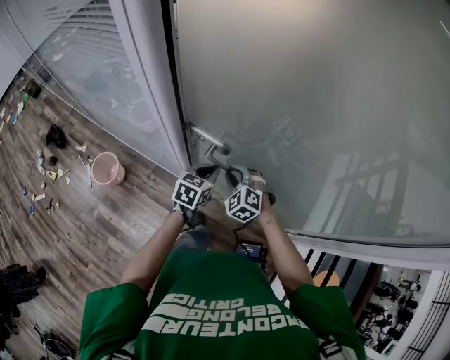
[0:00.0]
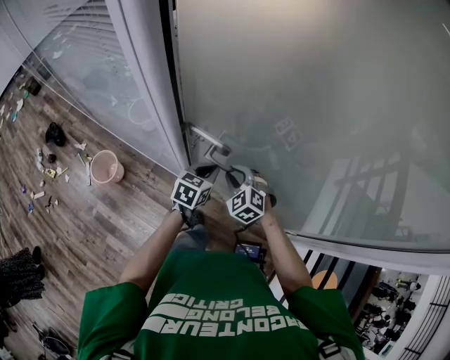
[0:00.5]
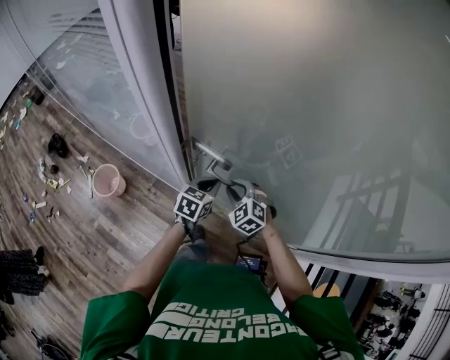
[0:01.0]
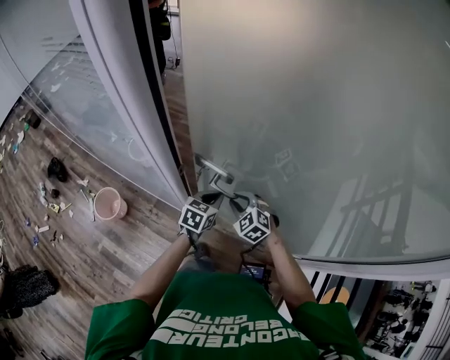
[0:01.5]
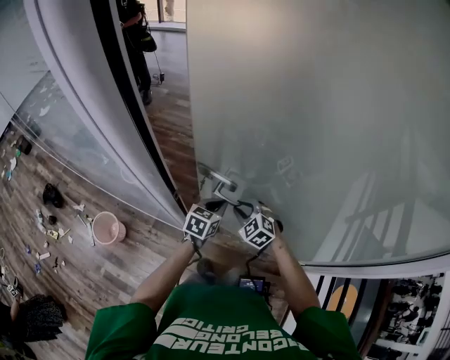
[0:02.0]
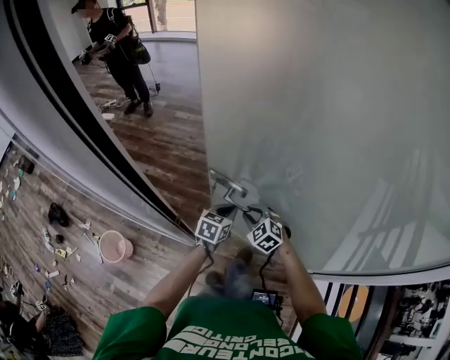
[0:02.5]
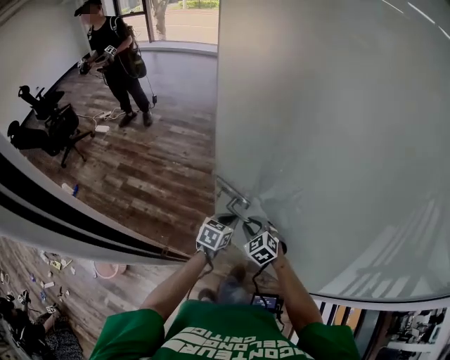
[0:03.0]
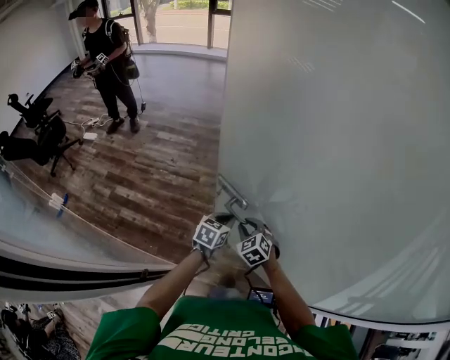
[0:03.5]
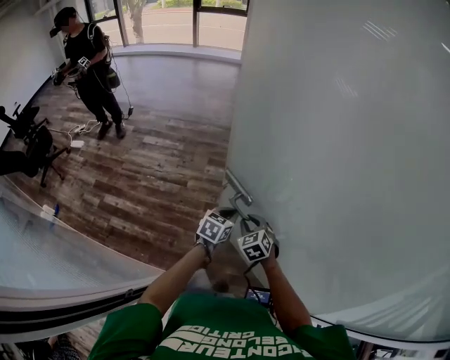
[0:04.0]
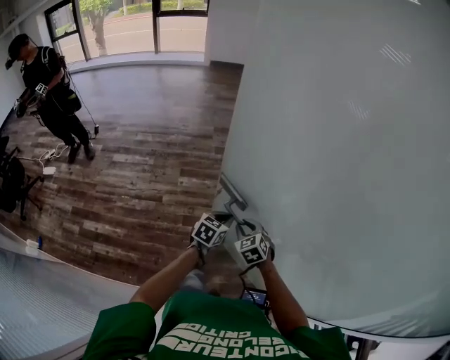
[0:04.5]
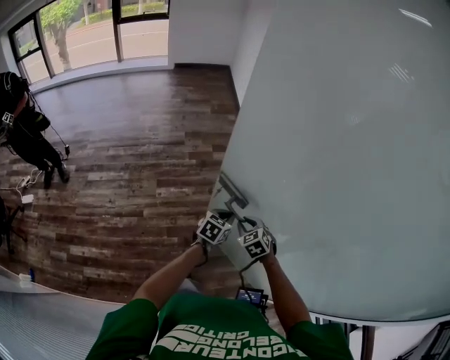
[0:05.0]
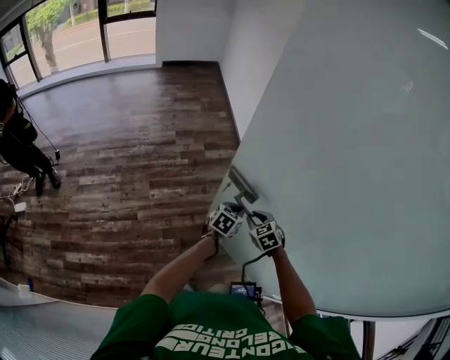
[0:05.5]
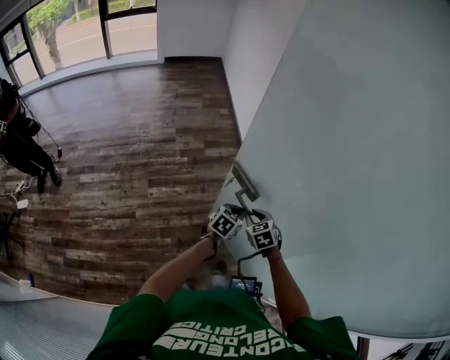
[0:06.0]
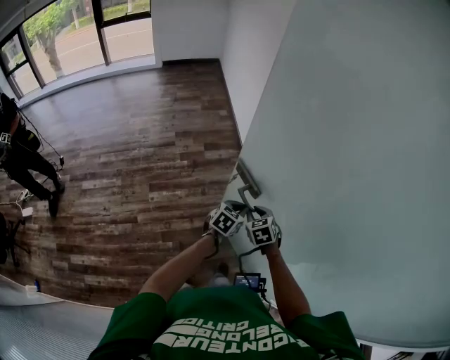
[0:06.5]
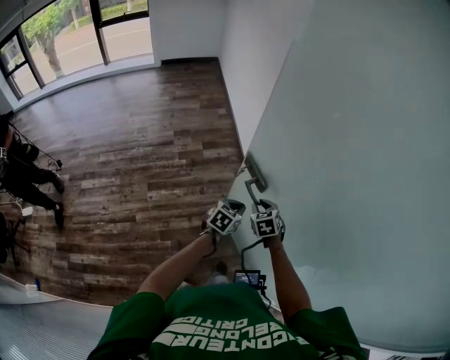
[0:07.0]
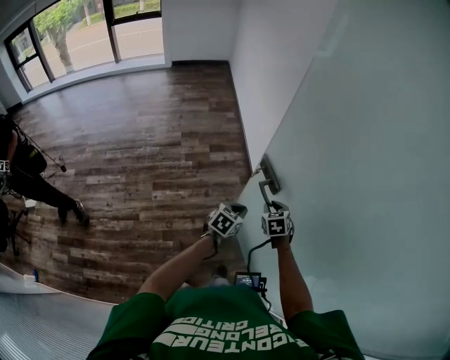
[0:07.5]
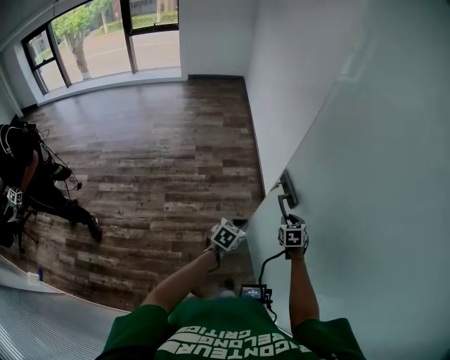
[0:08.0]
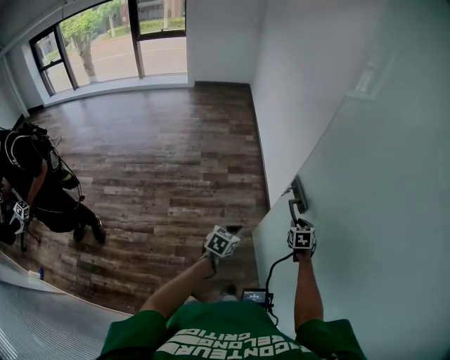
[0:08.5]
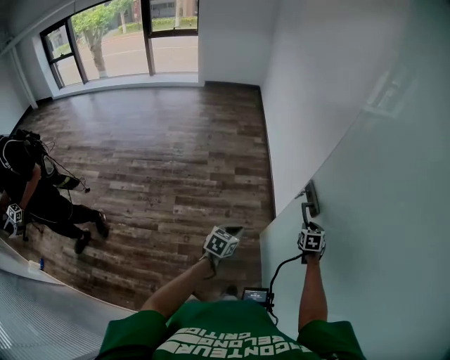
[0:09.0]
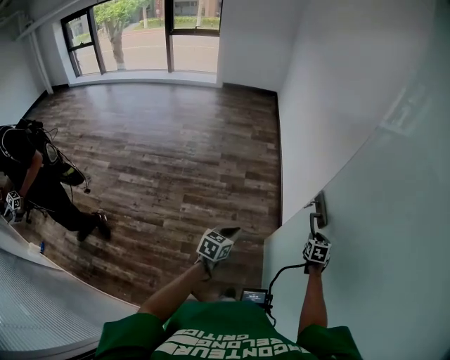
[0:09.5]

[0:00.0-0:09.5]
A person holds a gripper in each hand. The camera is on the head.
0:00.0 to 0:02.0: The grippers both shift forward by roughly 10 cm.
0:02.0 to 0:04.0: The grippers both shift forward by about 35 cm. The right gripper rotates roughly 30 degrees.
0:04.0 to 0:05.5: Both grippers move forward and to the right, some 25 cm. The right gripper changes its angle by approximately 20 degrees; the left gripper swivels roughly 30 degrees.
0:05.5 to 0:07.5: The left gripper travels forward by approximately 10 cm. Meanwhile the right gripper travels forward and to the right by approximately 20 cm.
0:07.5 to 0:09.5: The left gripper is displaced to the left and backward by approximately 15 cm, and turns by some 20 degrees; the right gripper moves to the right and forward, some 10 cm.

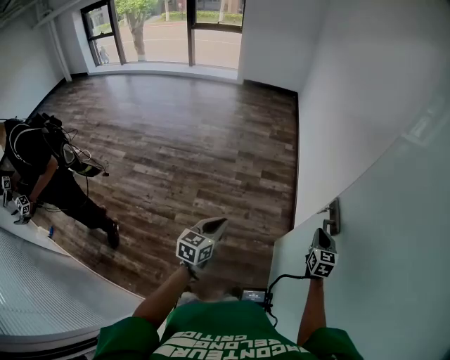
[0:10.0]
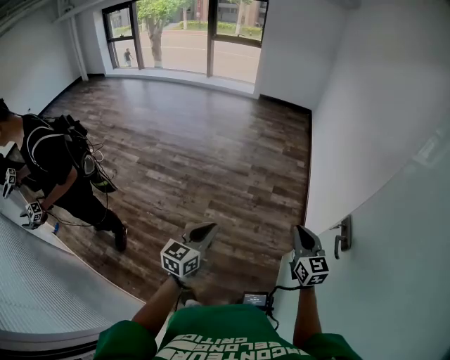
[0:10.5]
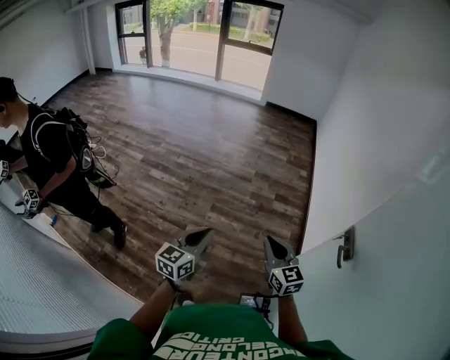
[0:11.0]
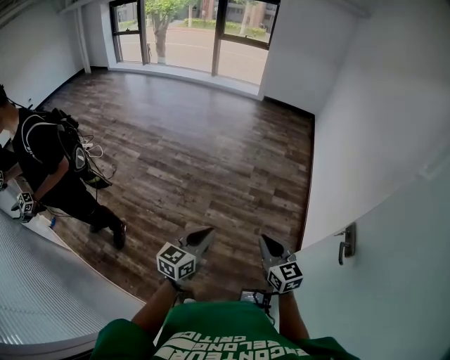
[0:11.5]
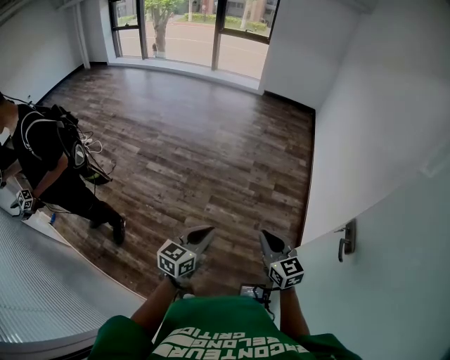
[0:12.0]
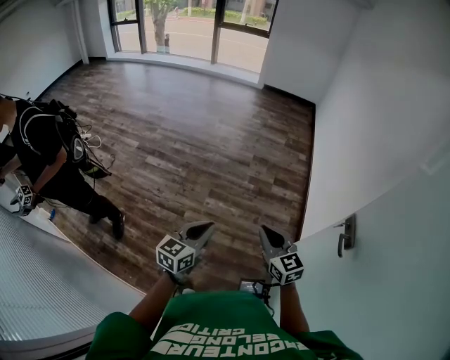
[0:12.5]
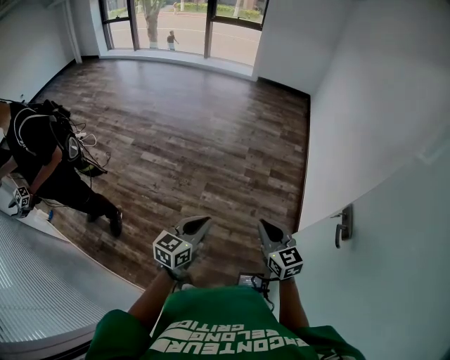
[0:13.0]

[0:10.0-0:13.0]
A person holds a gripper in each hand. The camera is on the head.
0:10.0 to 0:11.5: The left gripper is displaced to the left by approximately 15 cm. Meanwhile the right gripper moves to the left, some 35 cm, and turns by approximately 40 degrees.
0:11.5 to 0:13.0: The grippers make only small movements.

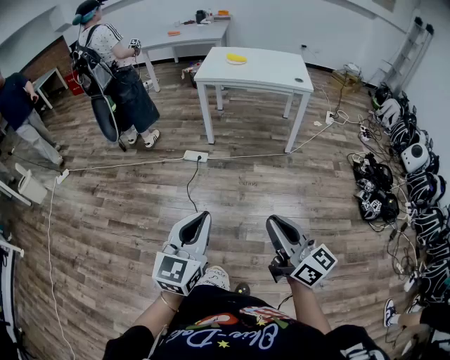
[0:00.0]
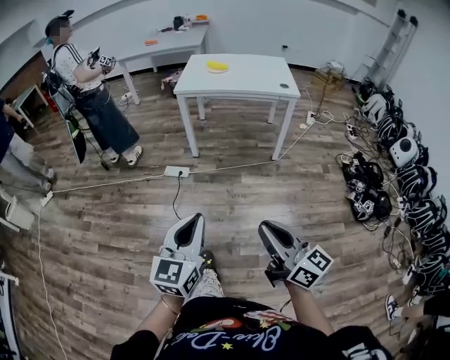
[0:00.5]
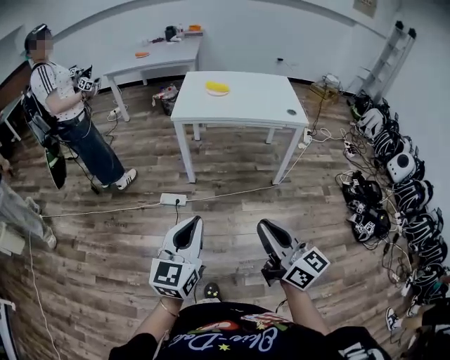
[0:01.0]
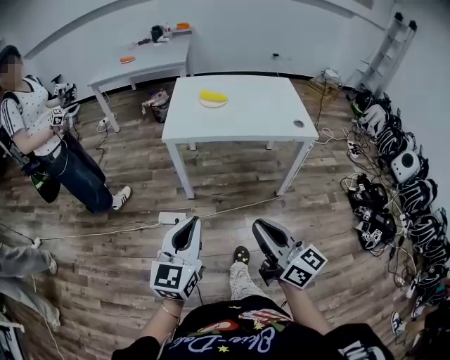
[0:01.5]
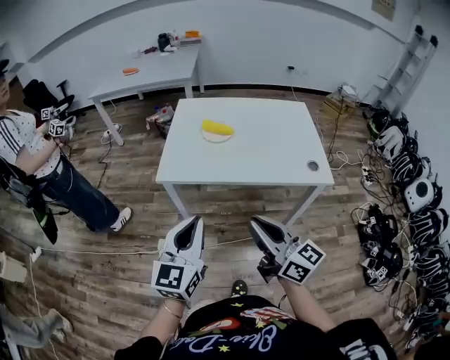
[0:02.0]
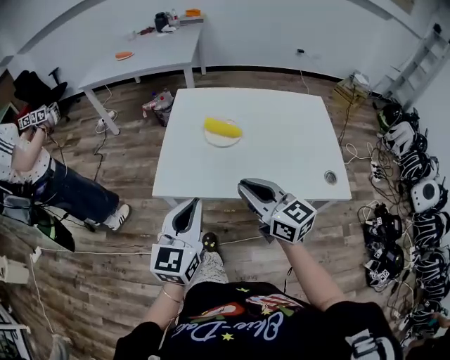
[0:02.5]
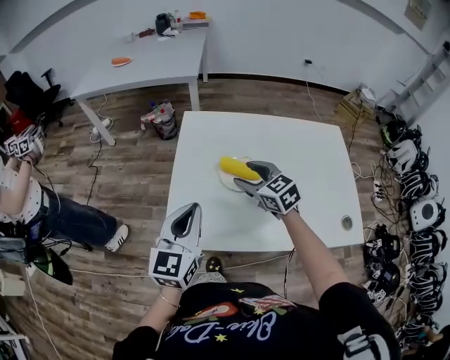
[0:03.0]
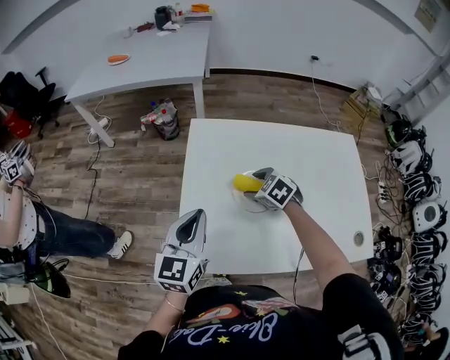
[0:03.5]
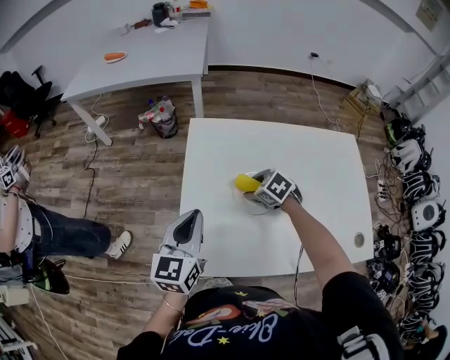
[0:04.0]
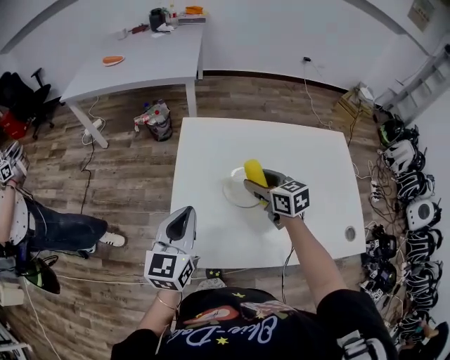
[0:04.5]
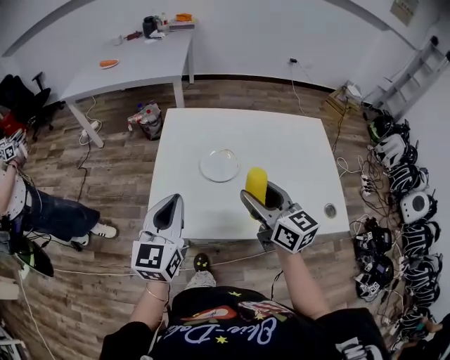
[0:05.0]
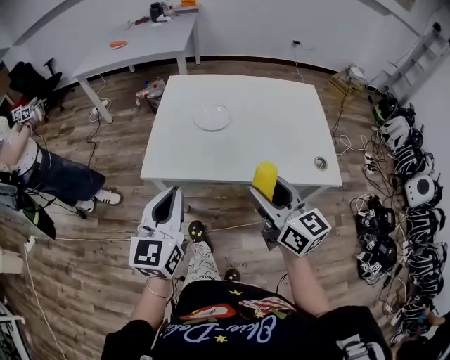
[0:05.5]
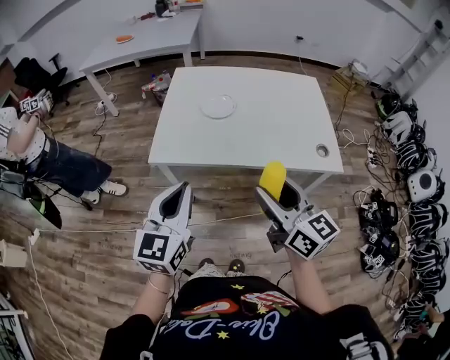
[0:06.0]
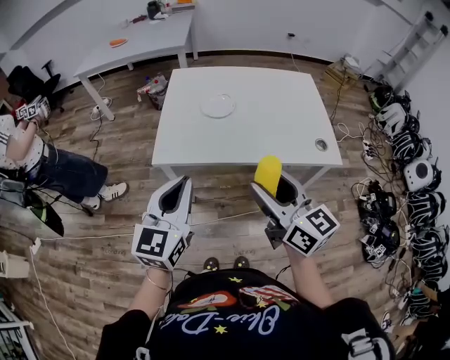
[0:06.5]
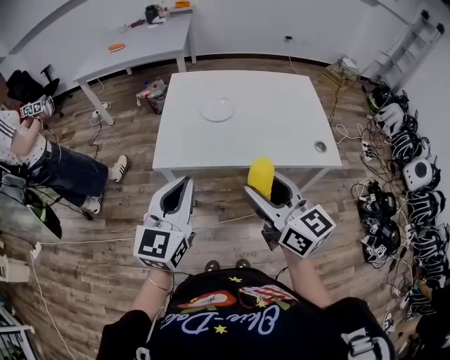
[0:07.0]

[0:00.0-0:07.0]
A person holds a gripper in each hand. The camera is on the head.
0:00.0 to 0:02.0: The pair of grippers is taken forward, approximately 70 cm.
0:02.0 to 0:03.5: The pair of grippers is taken forward, about 50 cm. The right gripper tilts its fingers about 70 degrees downward, and opens up.
0:03.5 to 0:05.0: The left gripper shifts approximately 10 cm backward; the right gripper travels backward and upward by roughly 30 cm, and tips its fingers upward by about 50 degrees.
0:05.0 to 0:07.0: Both grippers move backward, some 25 cm.

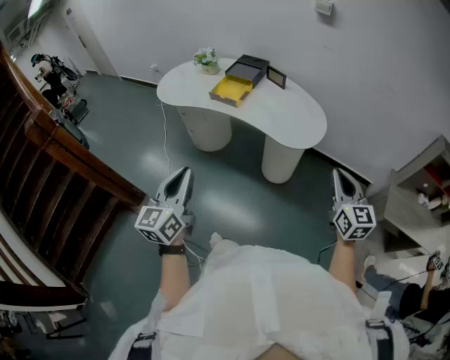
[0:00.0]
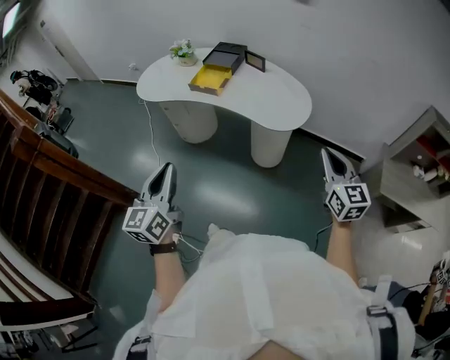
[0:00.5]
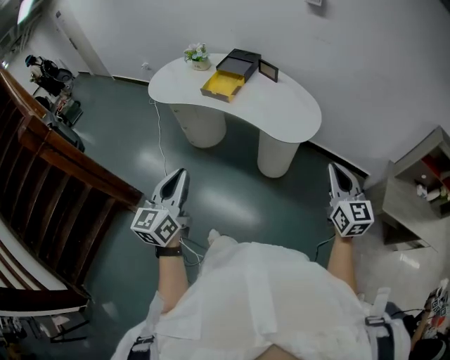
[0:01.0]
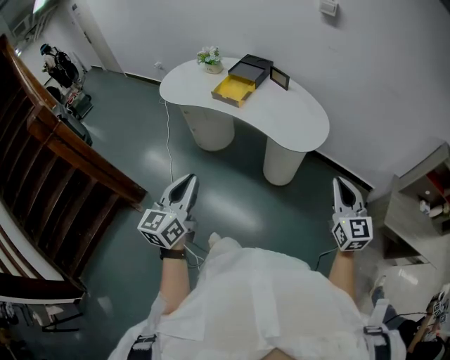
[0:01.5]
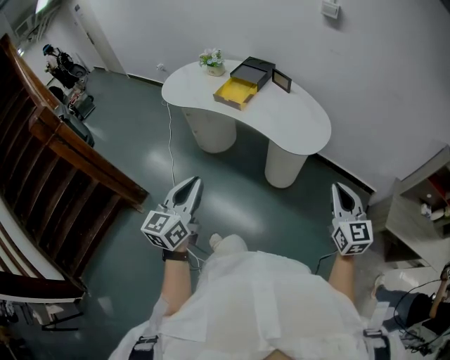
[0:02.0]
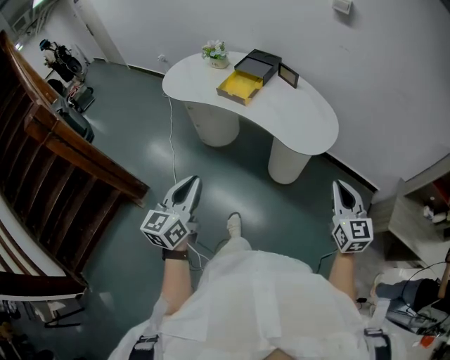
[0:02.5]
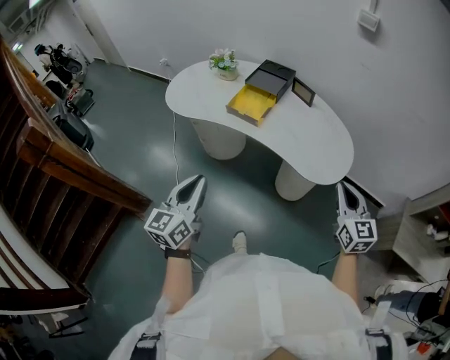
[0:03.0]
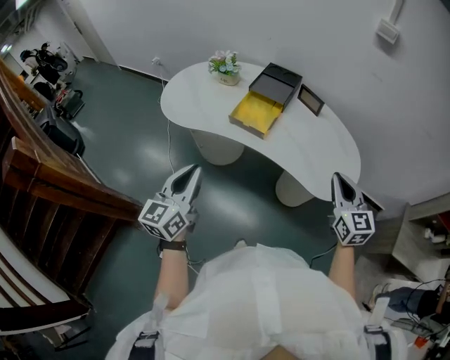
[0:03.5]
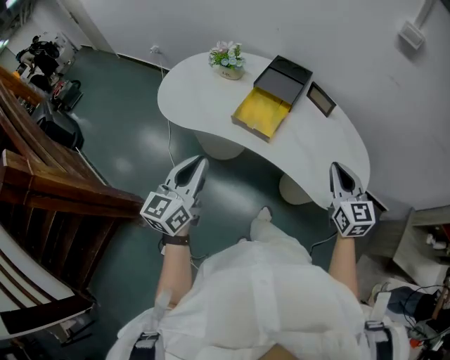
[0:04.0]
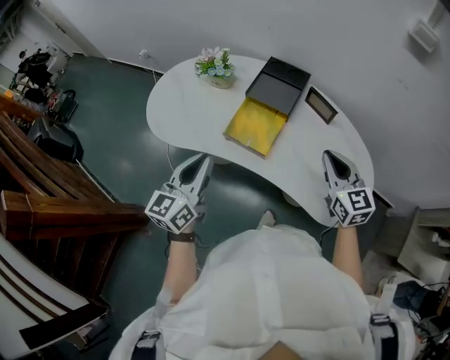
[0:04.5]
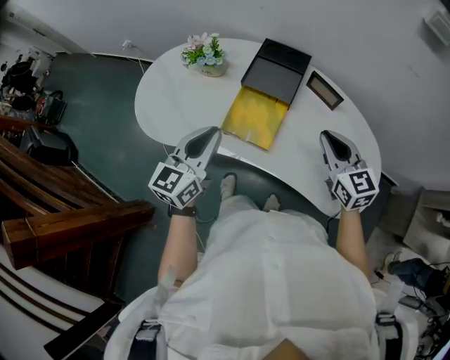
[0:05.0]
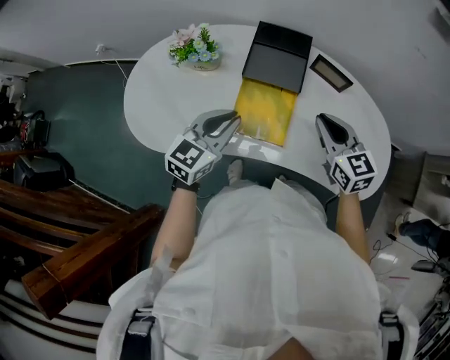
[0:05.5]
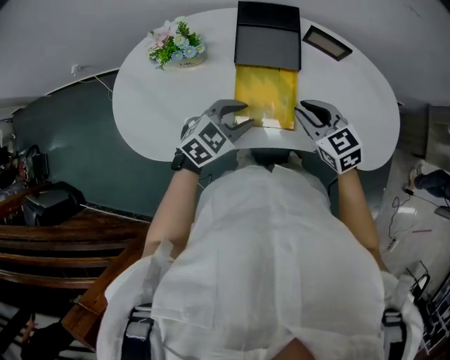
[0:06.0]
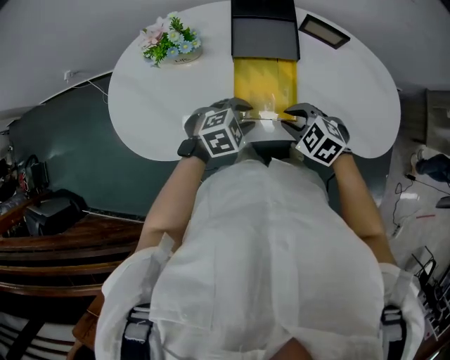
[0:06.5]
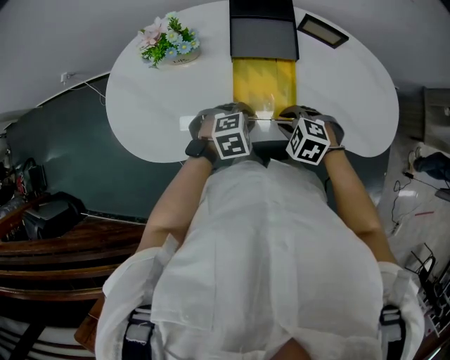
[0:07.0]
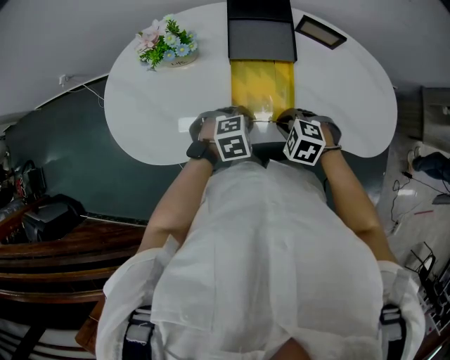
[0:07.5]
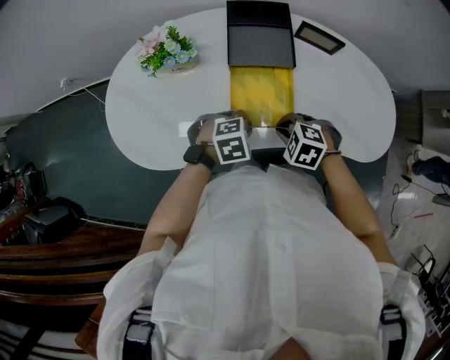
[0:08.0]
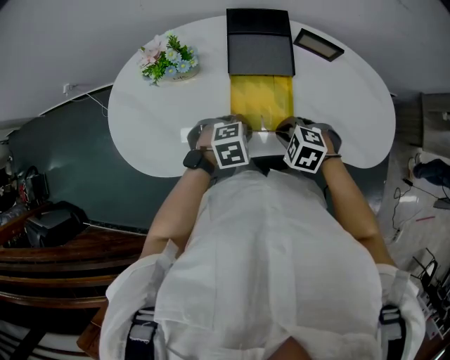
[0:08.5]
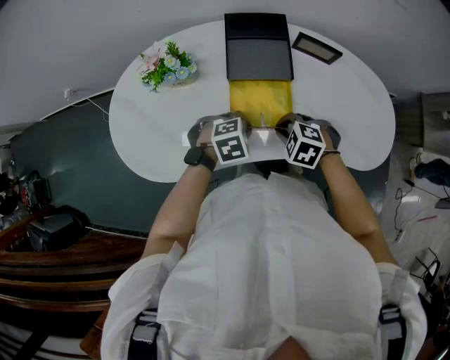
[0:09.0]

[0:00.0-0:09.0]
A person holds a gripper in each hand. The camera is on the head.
0:00.0 to 0:02.0: The grippers move only a little.
0:02.0 to 0:04.5: The pair of grippers is taken forward, approximately 50 cm.
0:04.5 to 0:07.0: Both grippers travel together downward, about 25 cm. The right gripper angles its fingers downward, by approximately 50 degrees. Meanwhile the left gripper tilts its fingers some 60 degrees downward, and opens, then closes again.
0:07.0 to 0:09.0: The grippers move only a little.
